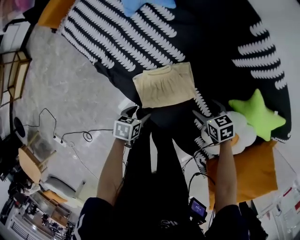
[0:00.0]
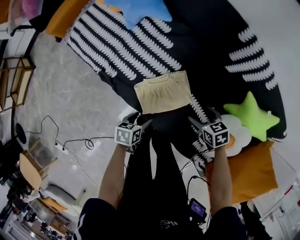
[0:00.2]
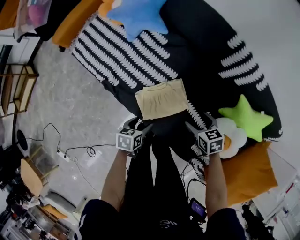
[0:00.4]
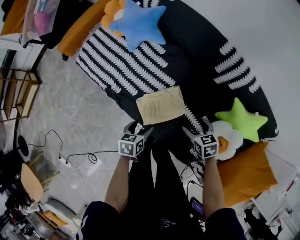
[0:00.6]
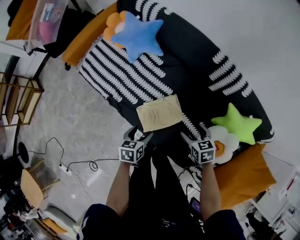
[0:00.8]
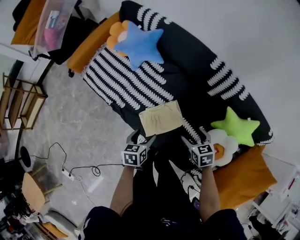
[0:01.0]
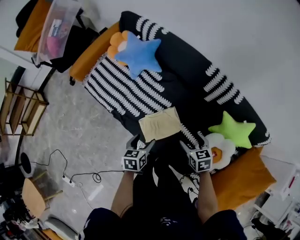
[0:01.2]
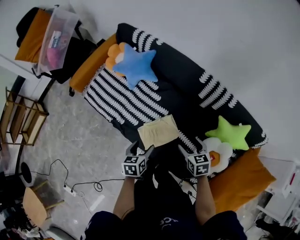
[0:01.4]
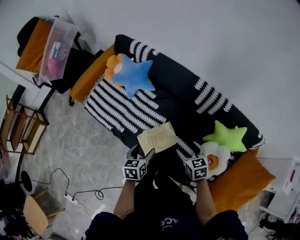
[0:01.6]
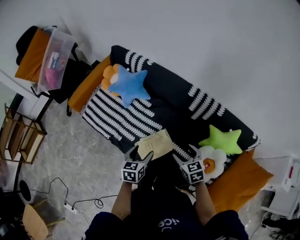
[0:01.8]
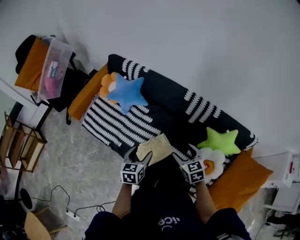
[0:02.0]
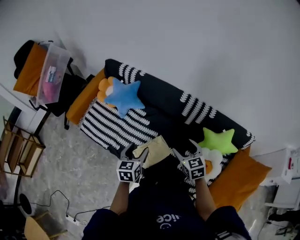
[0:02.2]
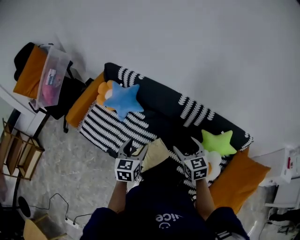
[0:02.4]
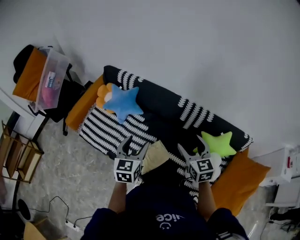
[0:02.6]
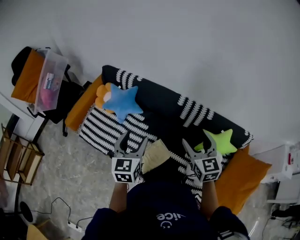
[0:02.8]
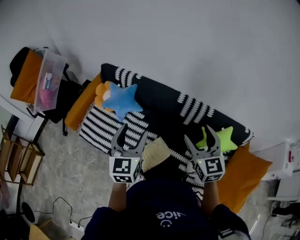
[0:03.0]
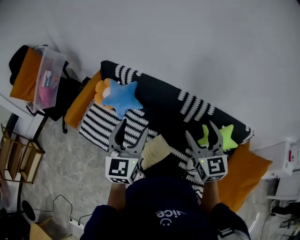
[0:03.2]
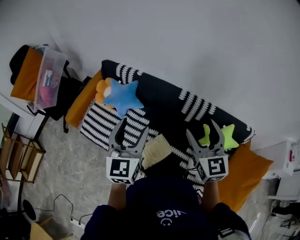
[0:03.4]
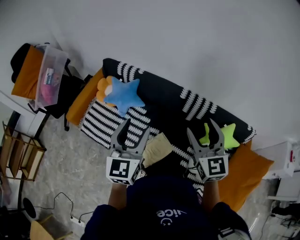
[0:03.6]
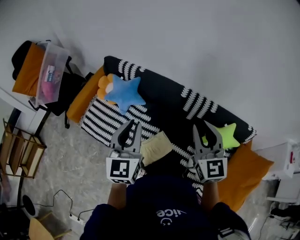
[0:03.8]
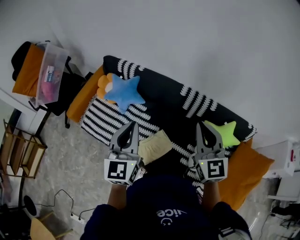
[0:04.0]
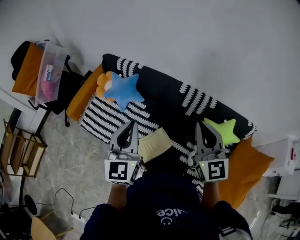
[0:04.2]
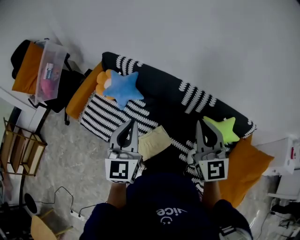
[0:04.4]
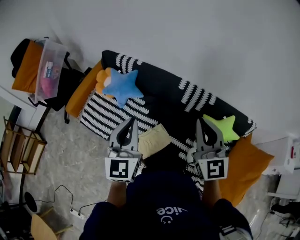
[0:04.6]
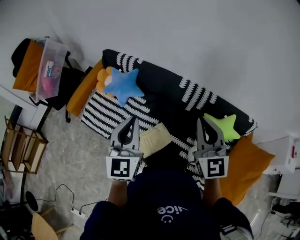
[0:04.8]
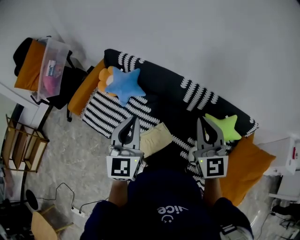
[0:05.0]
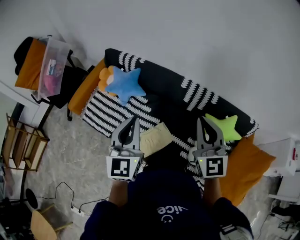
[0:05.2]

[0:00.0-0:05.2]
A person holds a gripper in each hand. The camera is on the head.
0:00.0 to 0:01.8: The two grippers go some 30 cm upward. The left gripper turns by some 40 degrees. Meanwhile the right gripper rotates approximately 30 degrees.
0:01.8 to 0:03.4: The two grippers go roughly 30 cm upward. The right gripper angles its fingers upward, by approximately 40 degrees. The left gripper angles its fingers upward, by about 30 degrees.
0:03.4 to 0:05.2: The left gripper closes, while the right gripper closes.

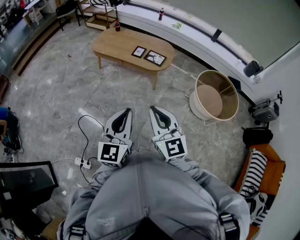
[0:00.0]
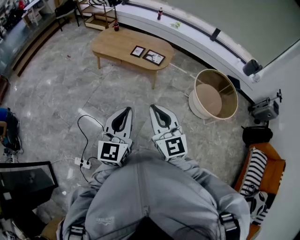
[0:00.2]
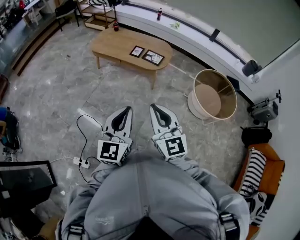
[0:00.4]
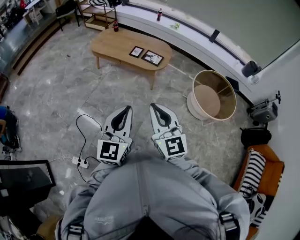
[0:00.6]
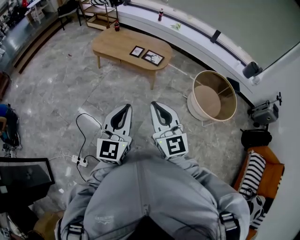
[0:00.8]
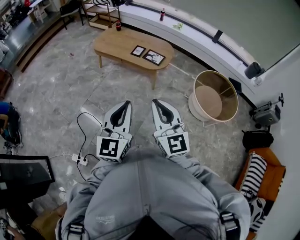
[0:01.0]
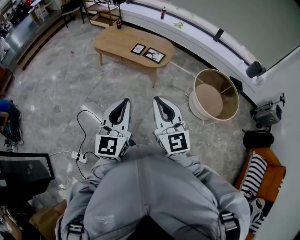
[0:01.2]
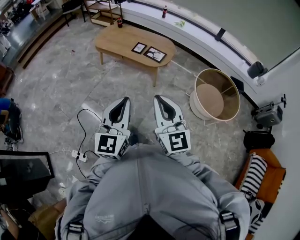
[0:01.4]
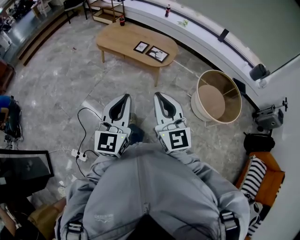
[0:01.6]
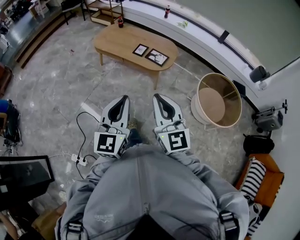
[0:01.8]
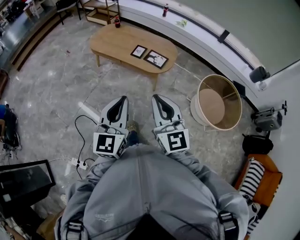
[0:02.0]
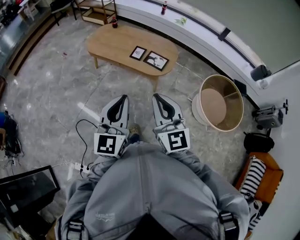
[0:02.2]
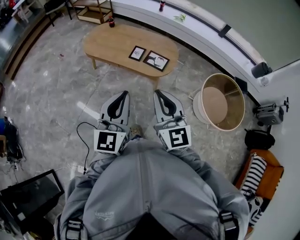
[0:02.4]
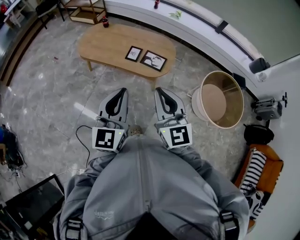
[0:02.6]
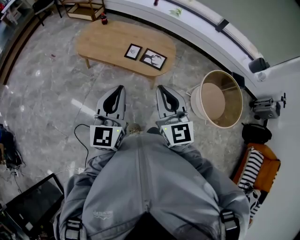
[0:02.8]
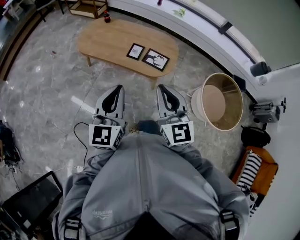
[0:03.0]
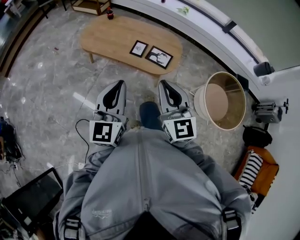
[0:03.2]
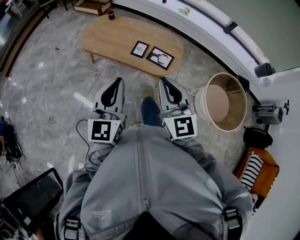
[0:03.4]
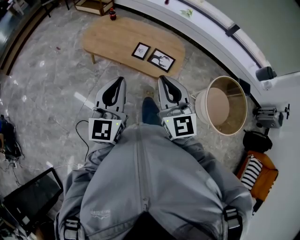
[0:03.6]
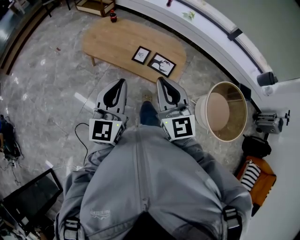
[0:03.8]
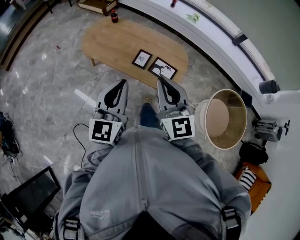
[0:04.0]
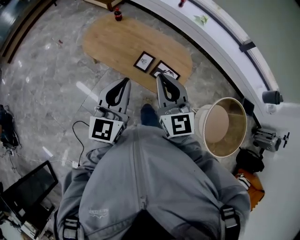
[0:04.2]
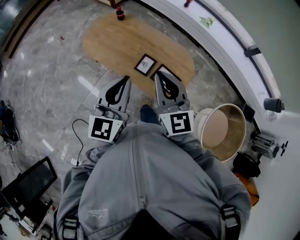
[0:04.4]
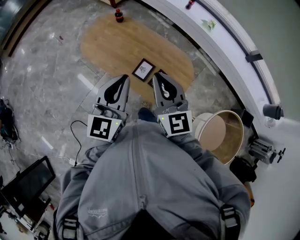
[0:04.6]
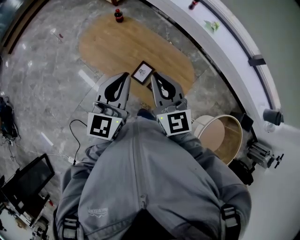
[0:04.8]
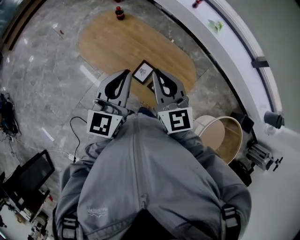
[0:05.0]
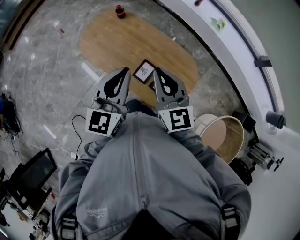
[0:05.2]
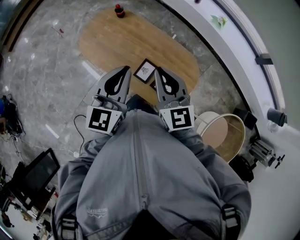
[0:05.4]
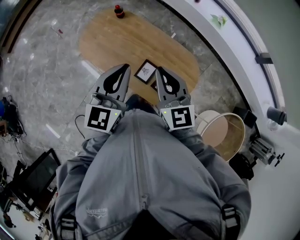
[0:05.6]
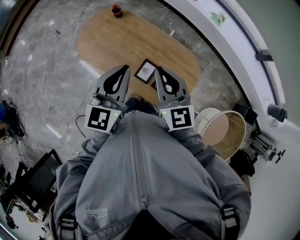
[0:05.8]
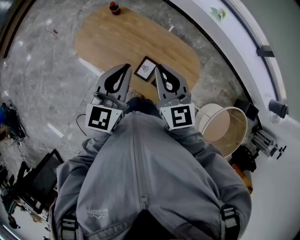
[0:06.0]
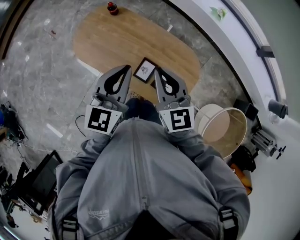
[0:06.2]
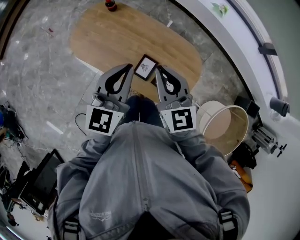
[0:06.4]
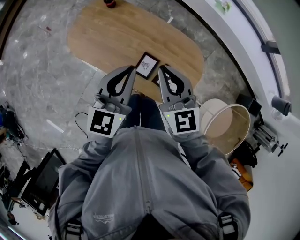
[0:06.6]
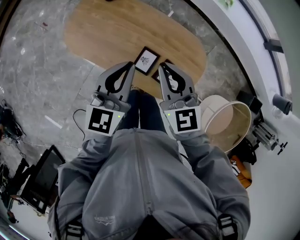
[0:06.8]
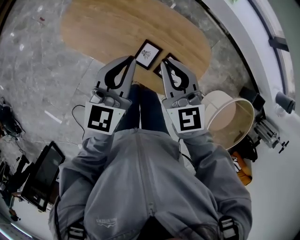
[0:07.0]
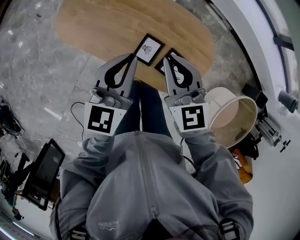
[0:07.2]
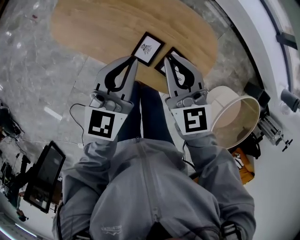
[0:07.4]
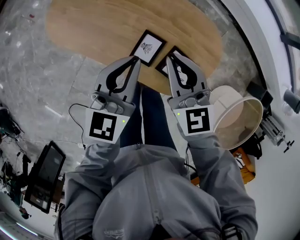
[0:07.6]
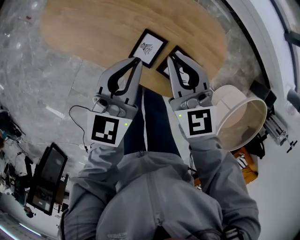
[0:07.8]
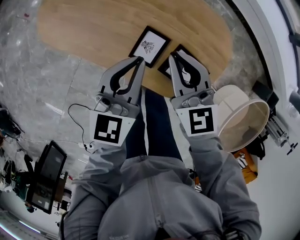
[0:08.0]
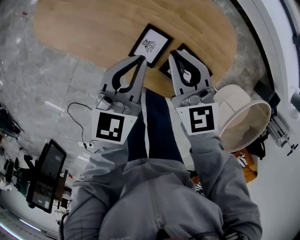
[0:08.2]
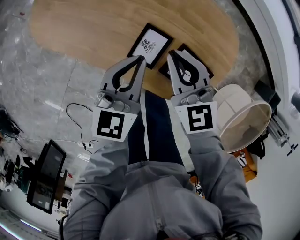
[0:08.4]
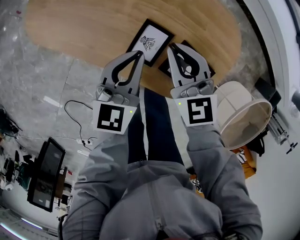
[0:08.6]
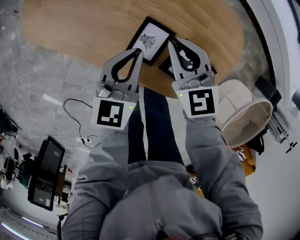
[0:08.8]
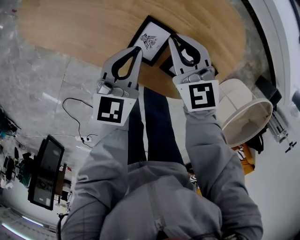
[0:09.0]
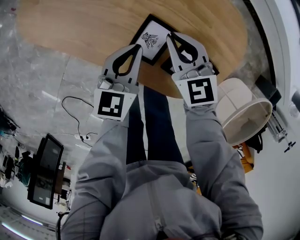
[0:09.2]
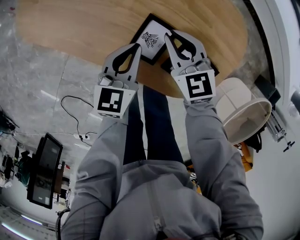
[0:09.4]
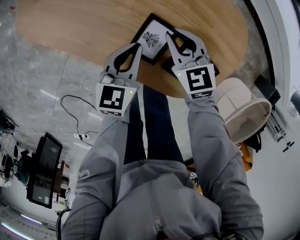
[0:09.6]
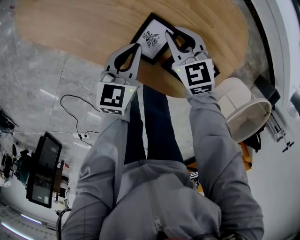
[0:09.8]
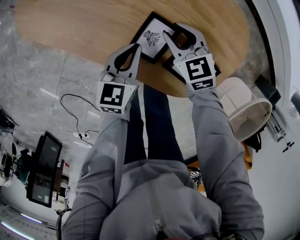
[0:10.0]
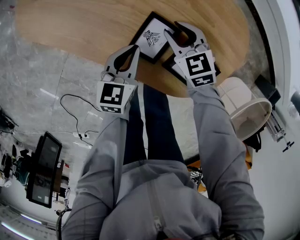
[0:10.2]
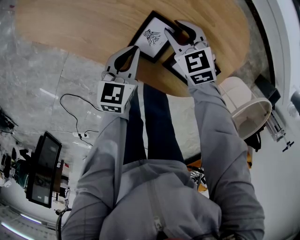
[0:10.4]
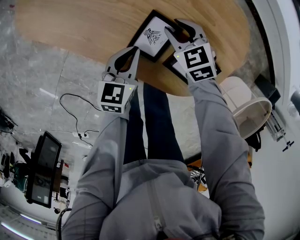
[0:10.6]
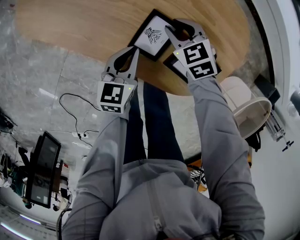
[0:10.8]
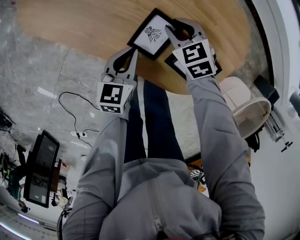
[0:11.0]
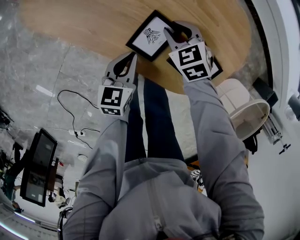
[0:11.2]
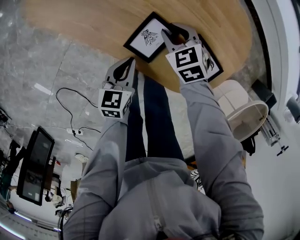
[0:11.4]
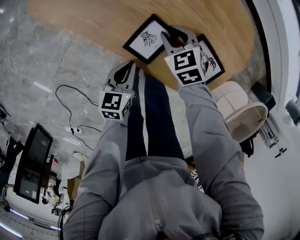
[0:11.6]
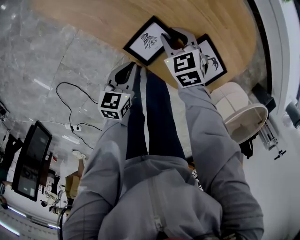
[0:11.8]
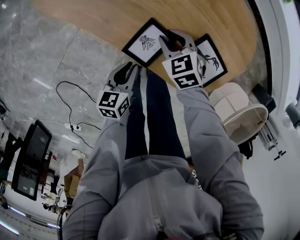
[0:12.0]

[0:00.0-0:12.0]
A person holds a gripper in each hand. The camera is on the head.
0:00.0 to 0:01.6: Both grippers travel together to the right, approximately 10 cm.
0:01.6 to 0:03.0: Both grippers are carried forward, approximately 40 cm.
0:03.0 to 0:04.4: The two grippers go approximately 35 cm forward.
0:04.4 to 0:06.0: Both grippers travel together forward, approximately 25 cm.
0:06.0 to 0:07.6: The grippers both shift downward by approximately 25 cm.
0:07.6 to 0:09.0: Both grippers travel together downward, approximately 25 cm.
0:09.0 to 0:10.4: The two grippers go roughly 10 cm downward. The right gripper rotates roughly 20 degrees, and opens.
0:10.4 to 0:12.0: The right gripper is displaced to the left and backward by roughly 10 cm. Meanwhile the left gripper moves backward and to the left, some 15 cm, and swivels approximately 20 degrees.

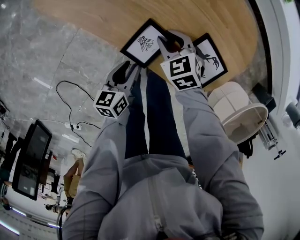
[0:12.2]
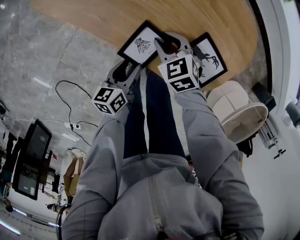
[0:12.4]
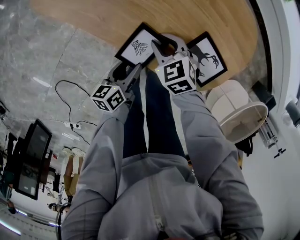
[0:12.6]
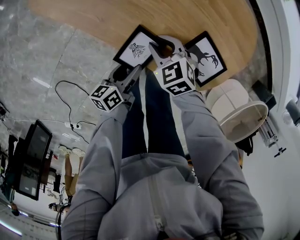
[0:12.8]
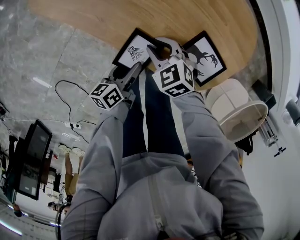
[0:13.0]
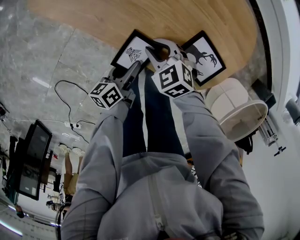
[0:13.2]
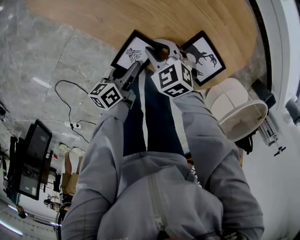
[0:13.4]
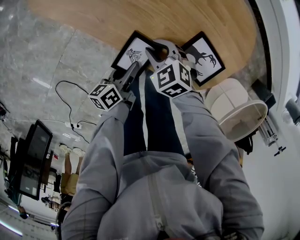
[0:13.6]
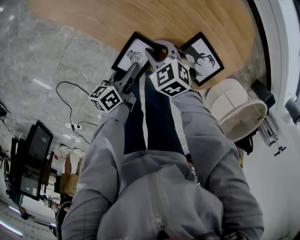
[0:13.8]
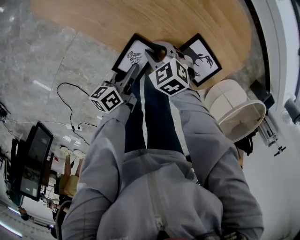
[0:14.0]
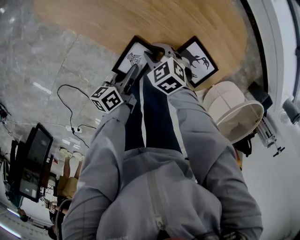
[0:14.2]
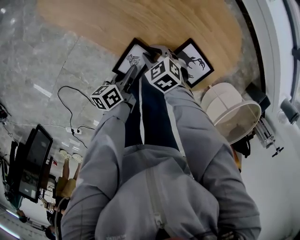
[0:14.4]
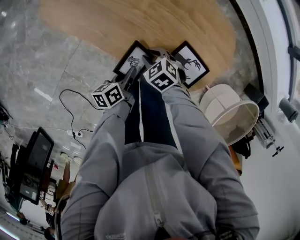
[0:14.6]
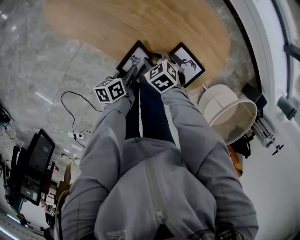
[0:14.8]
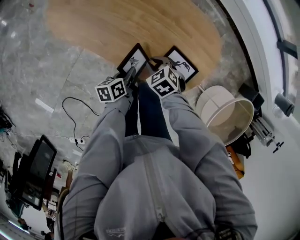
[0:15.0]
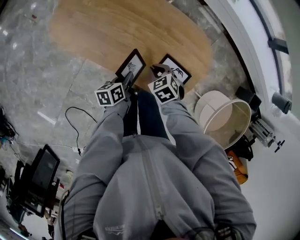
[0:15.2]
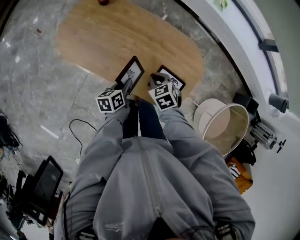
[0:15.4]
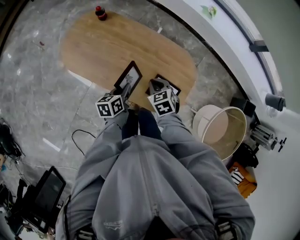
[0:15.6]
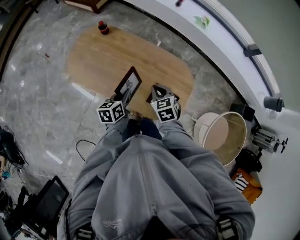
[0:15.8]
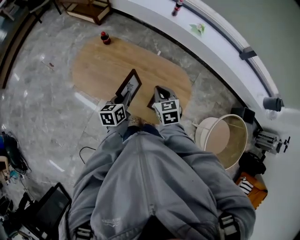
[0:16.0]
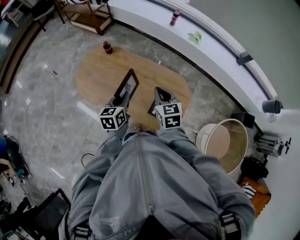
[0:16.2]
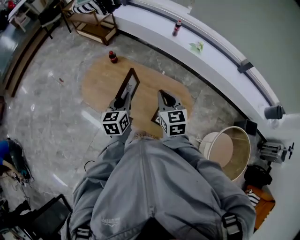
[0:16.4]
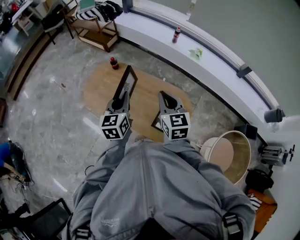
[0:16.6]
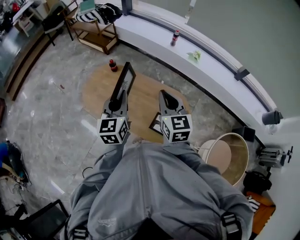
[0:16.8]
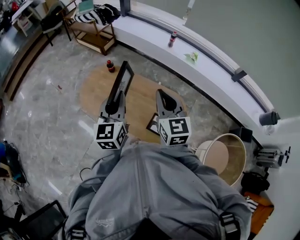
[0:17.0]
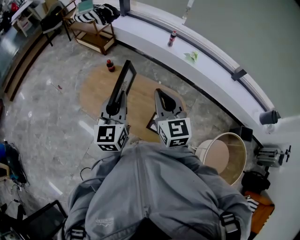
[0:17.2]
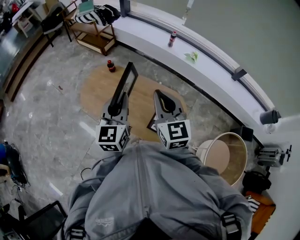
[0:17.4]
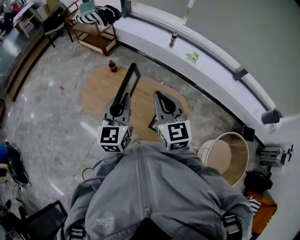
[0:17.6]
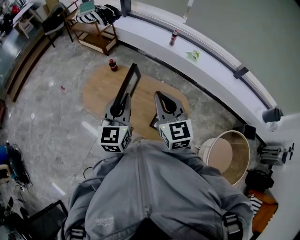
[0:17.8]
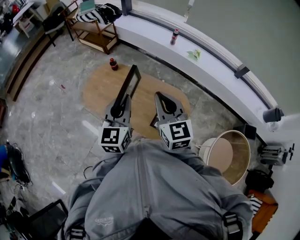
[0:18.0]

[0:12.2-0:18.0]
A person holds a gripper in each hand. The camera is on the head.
0:12.2 to 0:13.6: The left gripper rotates about 20 degrees; the right gripper moves roughly 5 cm.
0:13.6 to 0:15.0: Both grippers move upward, about 10 cm. The left gripper closes up.
0:15.0 to 0:16.6: Both grippers move upward, about 60 cm. The left gripper changes its angle by roughly 60 degrees. The right gripper points its fingers roughly 50 degrees further upward.
0:16.6 to 0:18.0: Both grippers move upward and backward, roughly 10 cm.

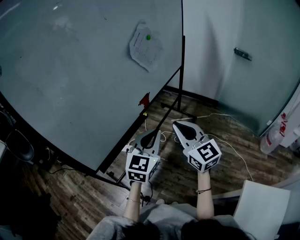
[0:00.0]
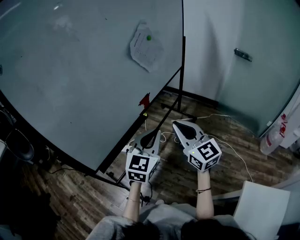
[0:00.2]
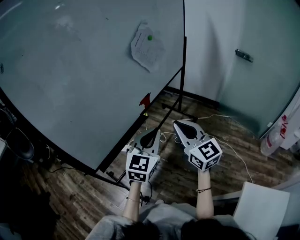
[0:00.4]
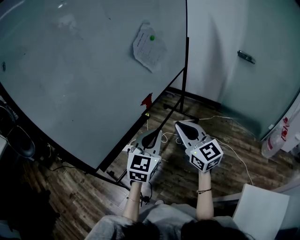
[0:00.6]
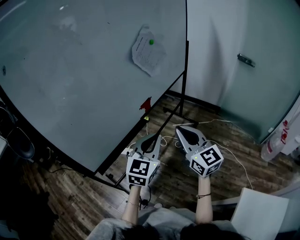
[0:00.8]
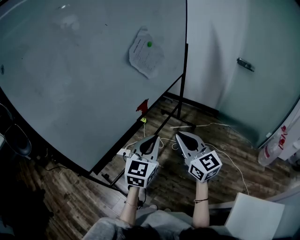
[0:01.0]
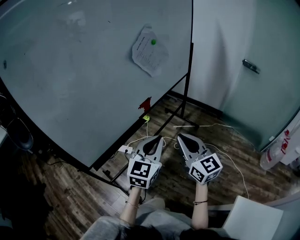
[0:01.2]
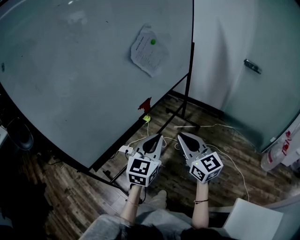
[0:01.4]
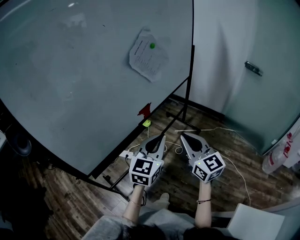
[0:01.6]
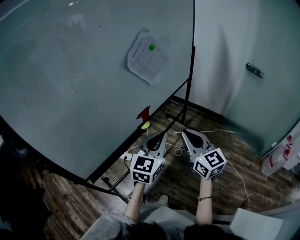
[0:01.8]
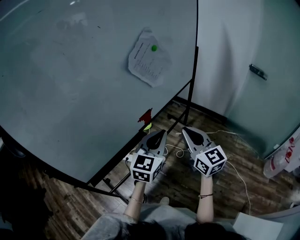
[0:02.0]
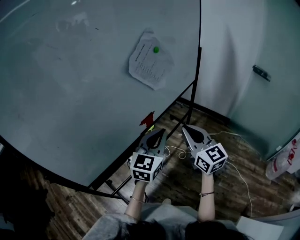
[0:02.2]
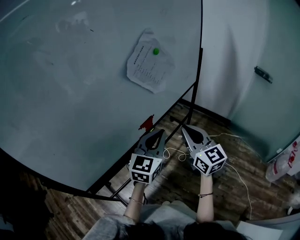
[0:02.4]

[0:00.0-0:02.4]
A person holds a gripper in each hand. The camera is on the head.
0:00.0 to 0:01.2: The right gripper ends up about 5 cm from where it was.
0:01.2 to 0:02.4: Both grippers move forward, about 20 cm.
